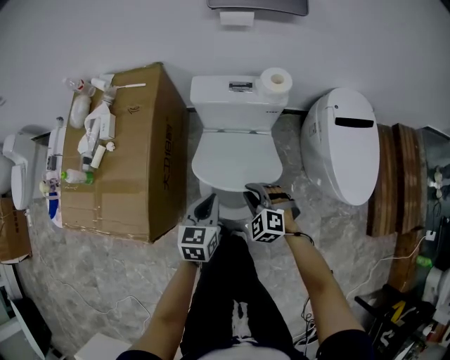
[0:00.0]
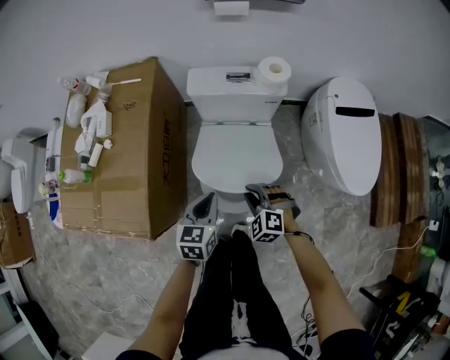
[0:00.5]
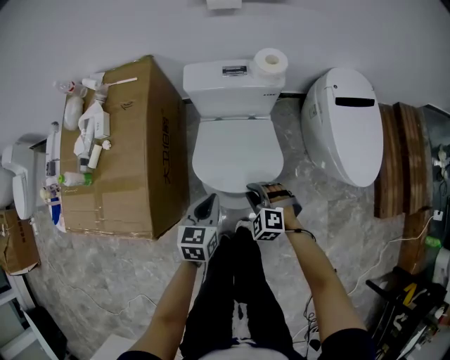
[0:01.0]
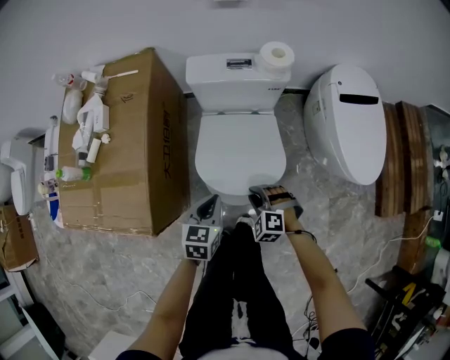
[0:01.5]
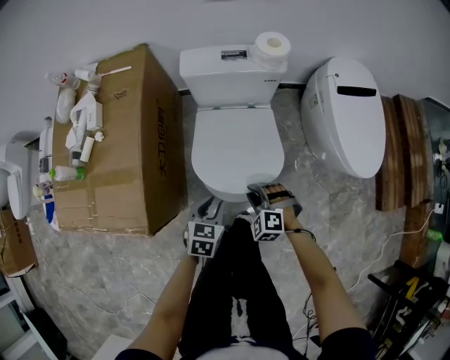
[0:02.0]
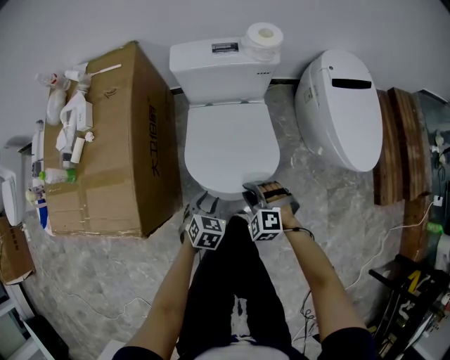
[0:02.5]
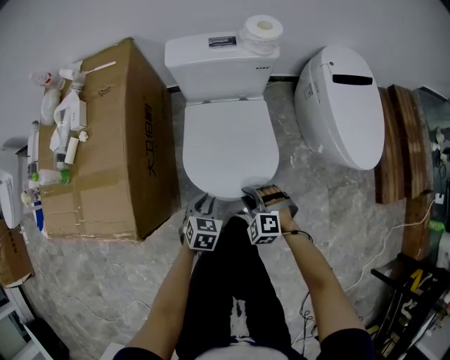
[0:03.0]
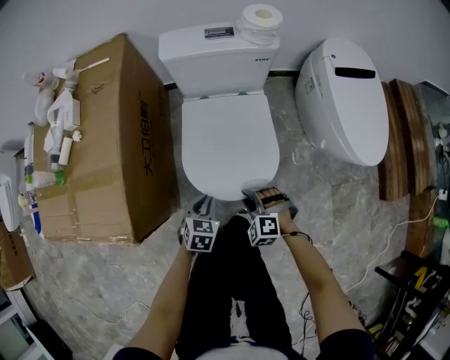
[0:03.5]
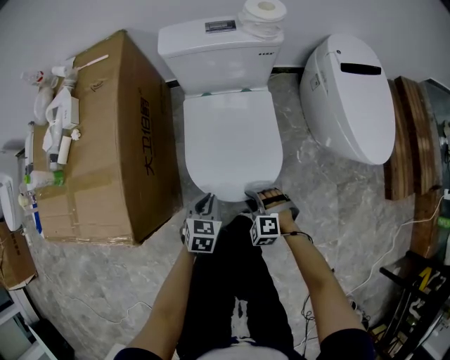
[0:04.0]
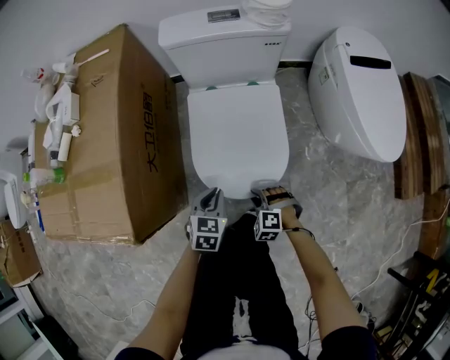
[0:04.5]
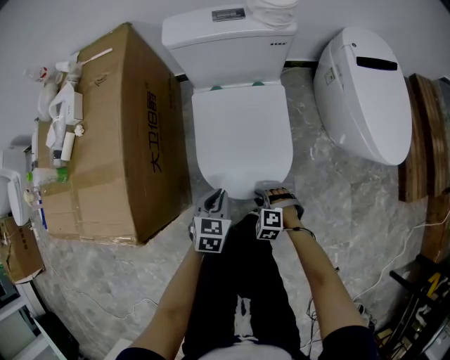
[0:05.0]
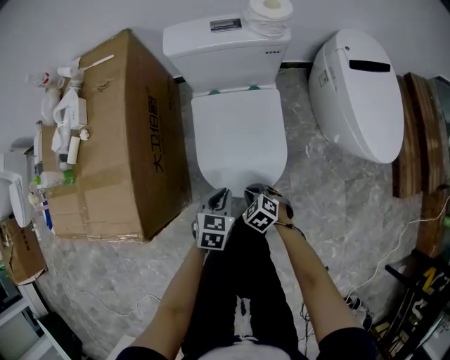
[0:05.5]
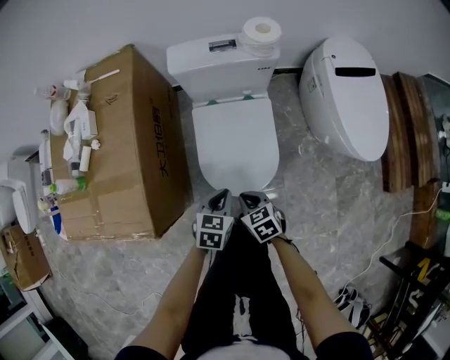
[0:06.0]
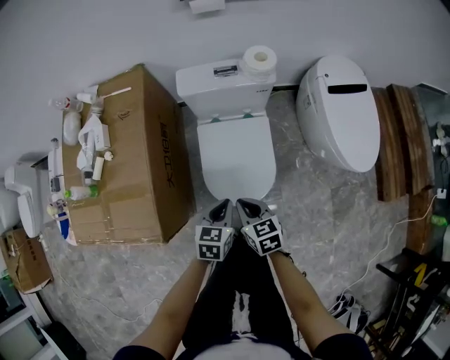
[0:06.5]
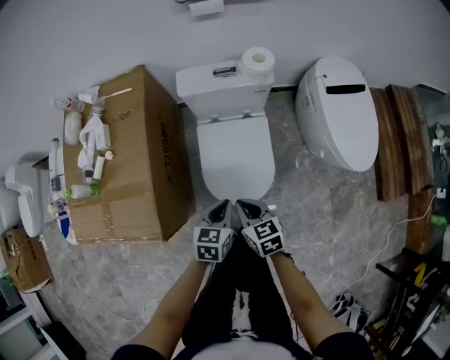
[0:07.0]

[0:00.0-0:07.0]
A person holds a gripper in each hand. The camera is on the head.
0:00.0 to 0:02.0: The grippers both shift downward and backward by approximately 15 cm. The left gripper rotates about 20 degrees, and opens its fingers.
0:02.0 to 0:03.5: The grippers both shift downward by approximately 10 cm.
0:03.5 to 0:05.0: The right gripper goes some 10 cm downward.
0:05.0 to 0:07.0: The right gripper heads upward, covering roughly 35 cm, rolls clockwise, seen from behind, by approximately 60 degrees, and closes its fingers, while the left gripper travels upward by roughly 25 cm.

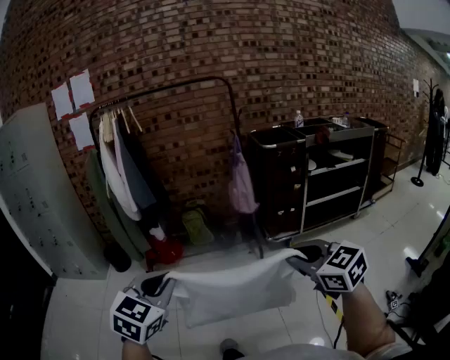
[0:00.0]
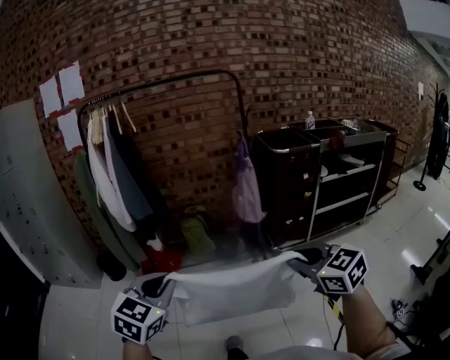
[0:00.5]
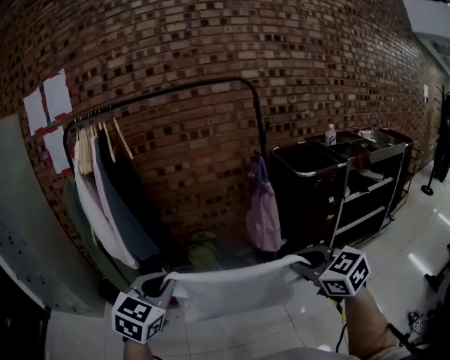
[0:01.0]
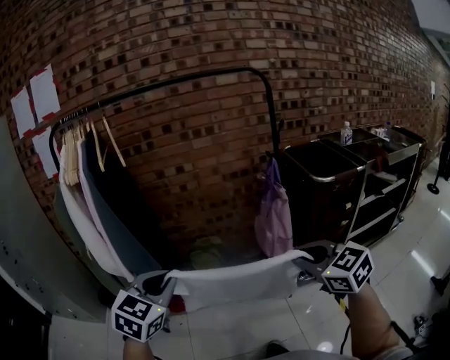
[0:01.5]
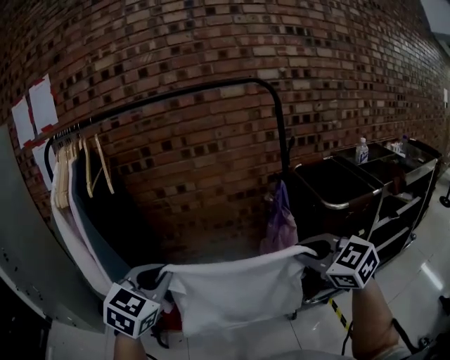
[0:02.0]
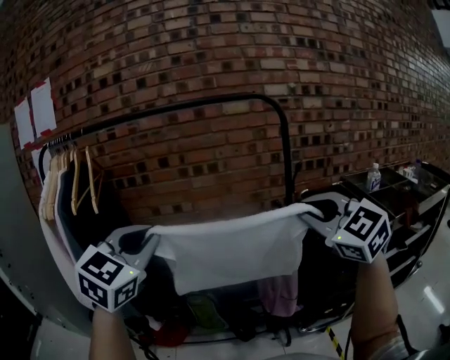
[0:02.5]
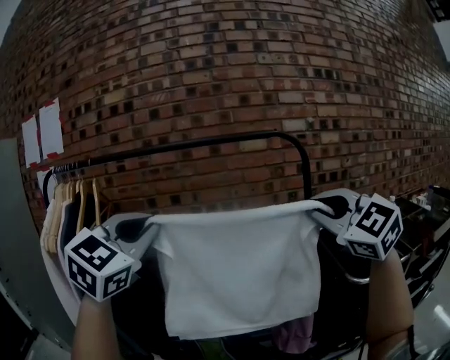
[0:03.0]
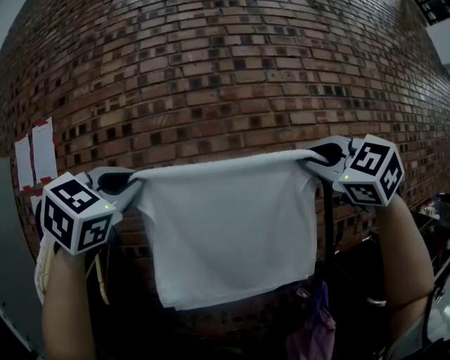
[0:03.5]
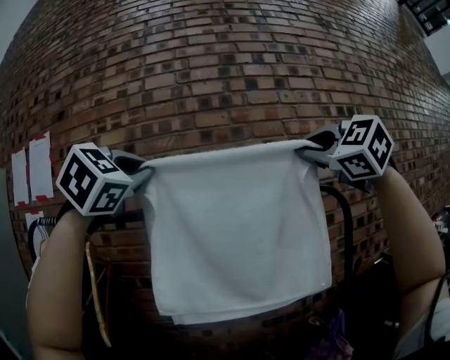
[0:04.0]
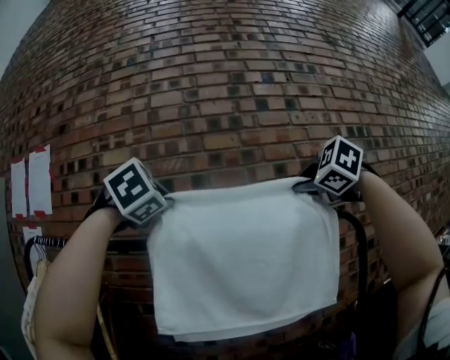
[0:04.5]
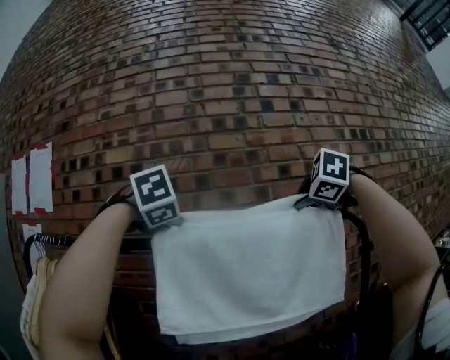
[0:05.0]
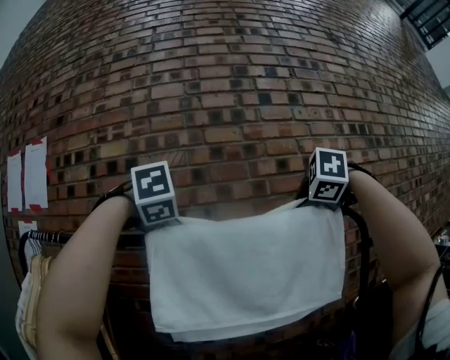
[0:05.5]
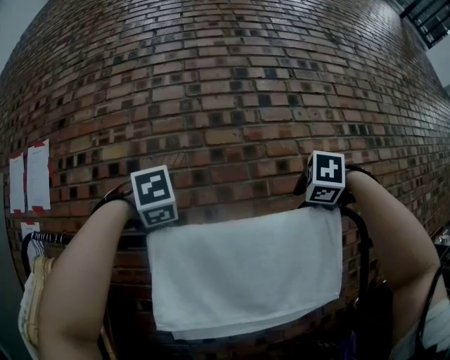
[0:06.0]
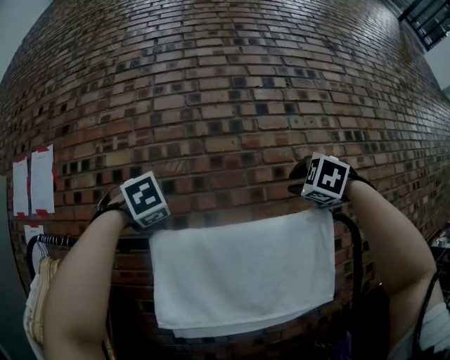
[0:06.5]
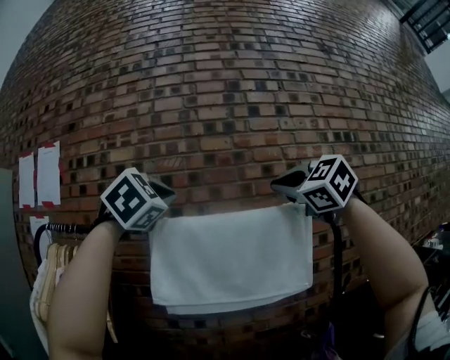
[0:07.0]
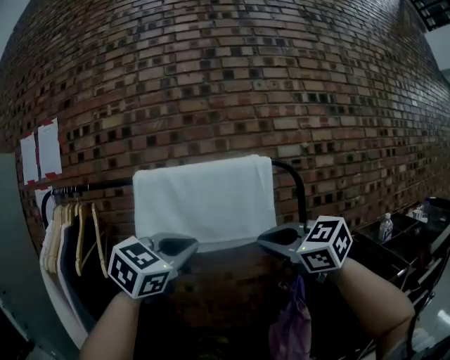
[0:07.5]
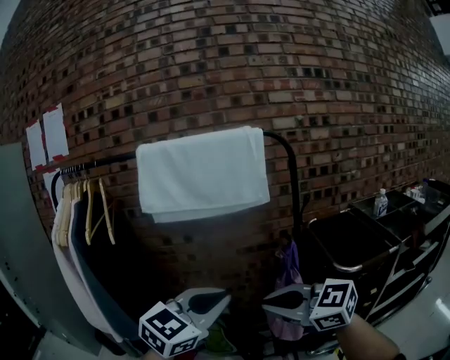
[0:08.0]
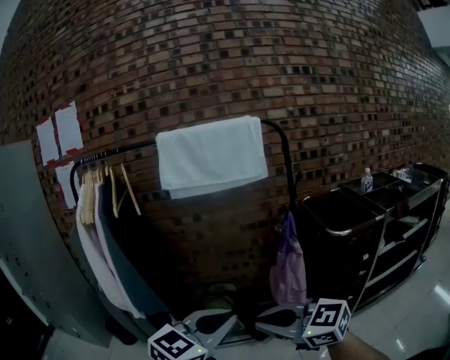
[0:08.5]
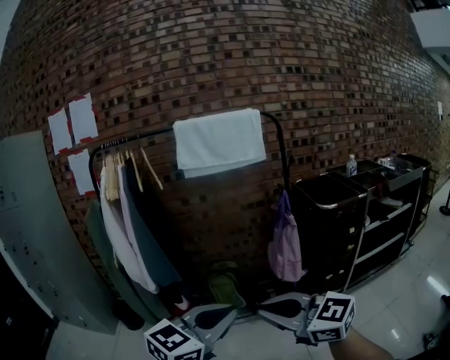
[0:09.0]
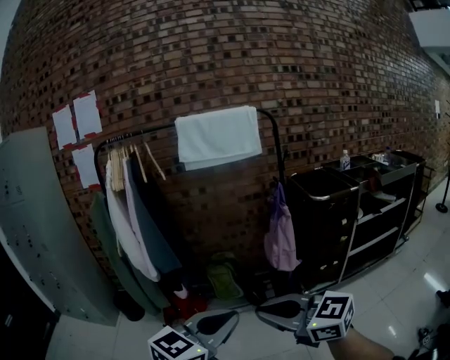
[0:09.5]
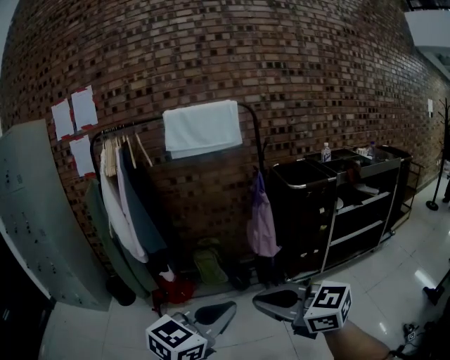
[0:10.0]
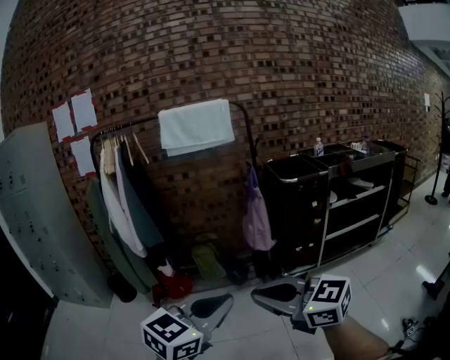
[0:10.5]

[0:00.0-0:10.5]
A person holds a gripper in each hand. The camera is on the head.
0:00.0 to 0:02.0: The two grippers travel together, forward, some 60 cm.
0:02.0 to 0:04.0: The grippers both shift upward and forward by some 60 cm. The right gripper rotates about 40 degrees, while the left gripper rotates about 40 degrees.
0:04.0 to 0:06.5: Both grippers travel together forward, roughly 15 cm. The left gripper rotates about 30 degrees, and opens its fingers. The right gripper changes its angle by roughly 30 degrees, and opens its fingers.
0:06.5 to 0:08.5: The two grippers travel together, backward, some 60 cm. The grippers both shift downward by about 40 cm. The left gripper turns by approximately 70 degrees, and closes its fingers. Meanwhile the right gripper swivels about 80 degrees, and closes its fingers.
0:08.5 to 0:10.5: The two grippers go approximately 40 cm backward.

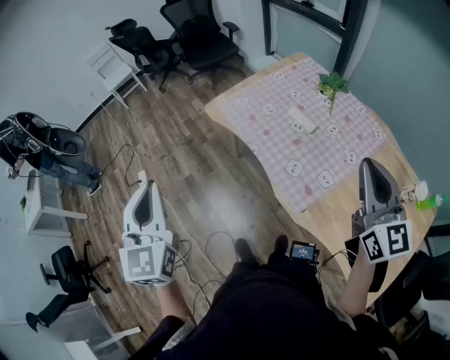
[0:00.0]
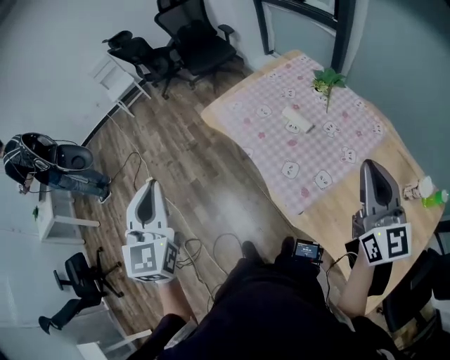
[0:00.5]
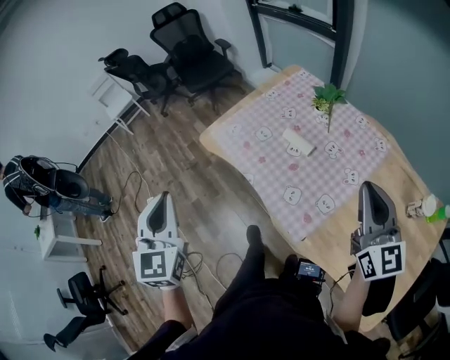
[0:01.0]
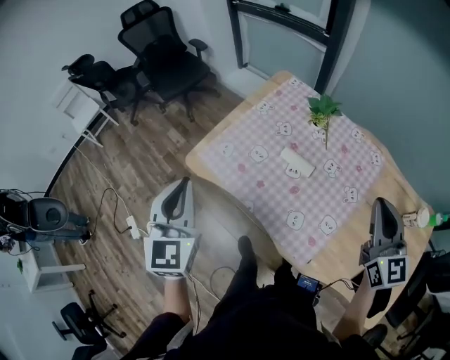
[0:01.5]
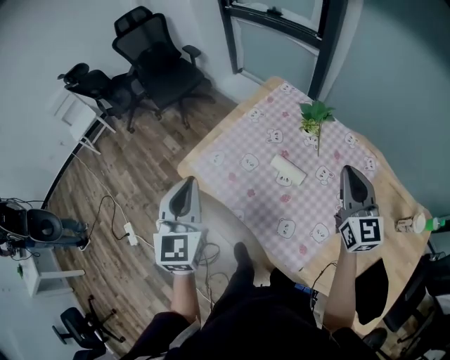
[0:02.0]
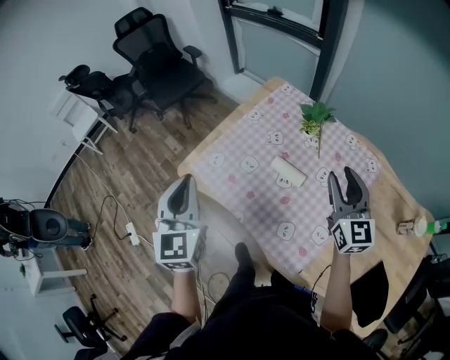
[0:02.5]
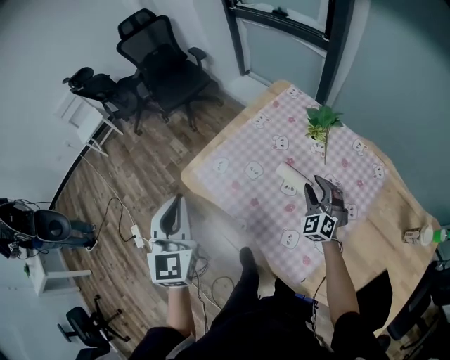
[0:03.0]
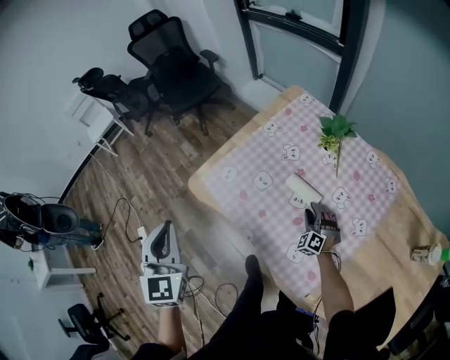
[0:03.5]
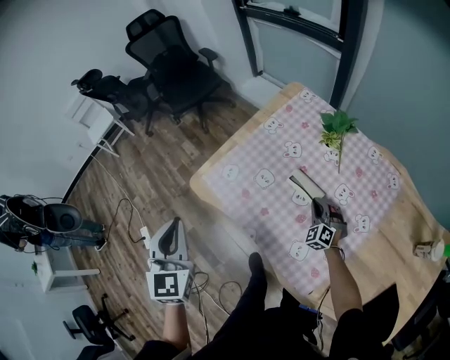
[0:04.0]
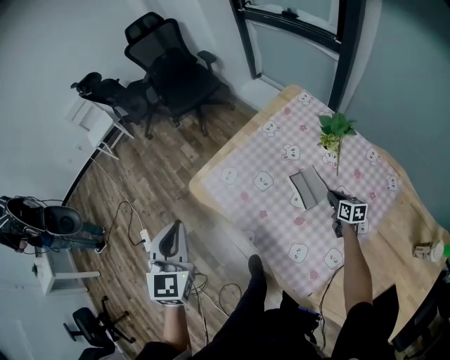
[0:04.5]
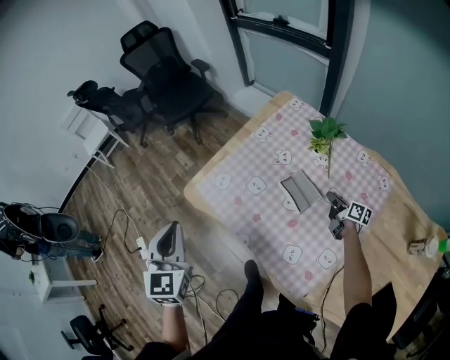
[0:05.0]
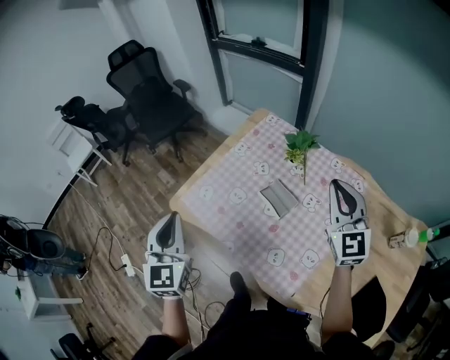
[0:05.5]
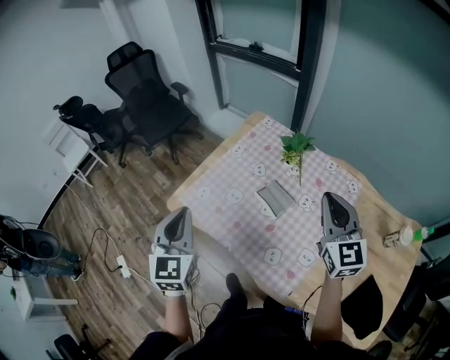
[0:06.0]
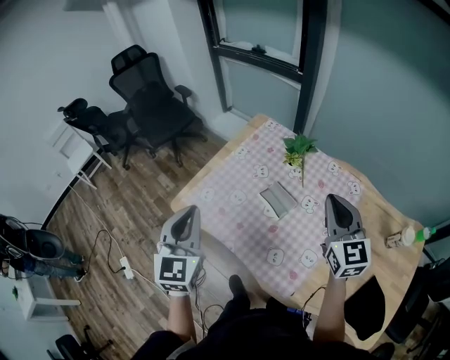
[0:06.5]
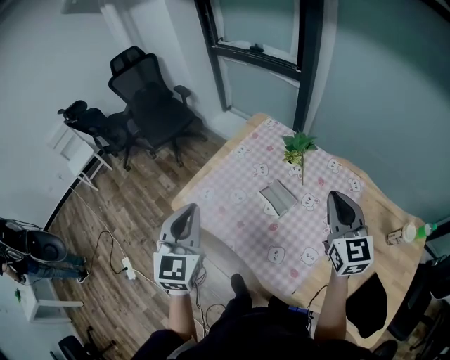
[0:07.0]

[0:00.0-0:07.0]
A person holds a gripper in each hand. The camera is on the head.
0:00.0 to 0:02.0: The two grippers go about 30 cm forward. The left gripper swivels roughly 20 degrees.
0:02.0 to 0:03.5: The right gripper moves downward, approximately 40 cm, rolls counterclockwise, seen from behind, by some 50 degrees, and opens, while the left gripper heads to the left, covering roughly 5 cm.
0:03.5 to 0:05.0: The right gripper goes approximately 15 cm to the right, twists about 110 degrees clockwise, seen from behind, and closes.
0:05.0 to 0:07.0: The right gripper heads upward, covering about 40 cm, and rolls counterclockwise, seen from behind, by approximately 60 degrees; the left gripper heads to the right and upward, covering roughly 10 cm.

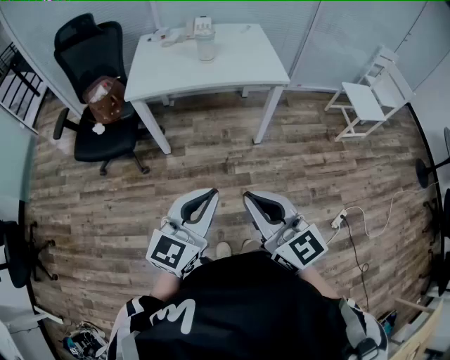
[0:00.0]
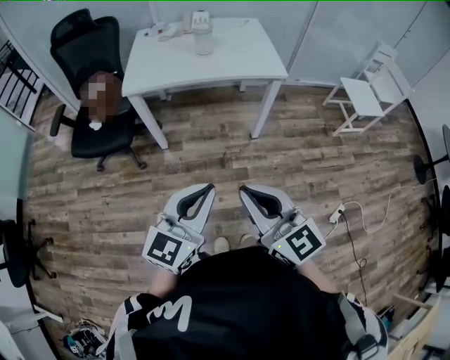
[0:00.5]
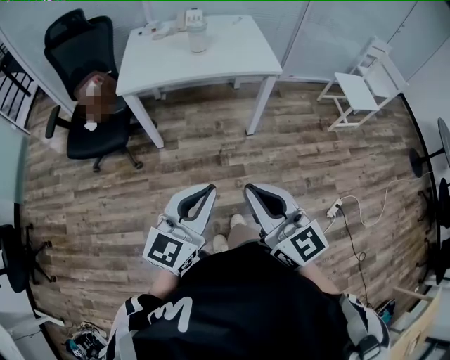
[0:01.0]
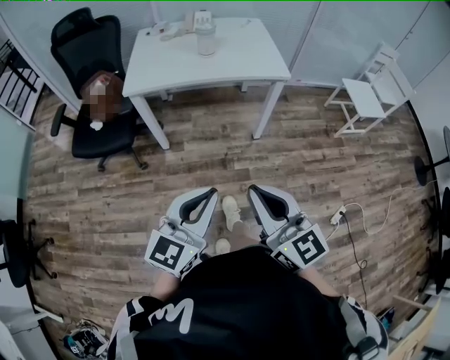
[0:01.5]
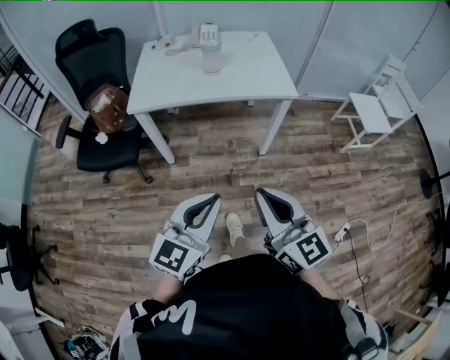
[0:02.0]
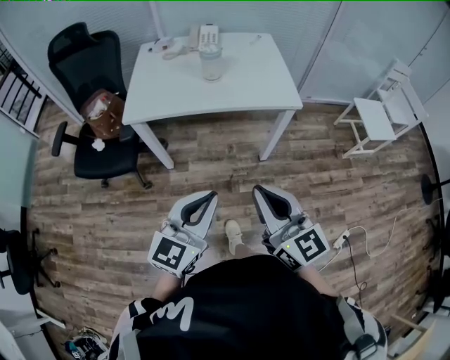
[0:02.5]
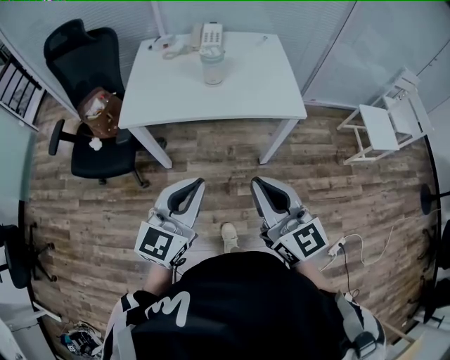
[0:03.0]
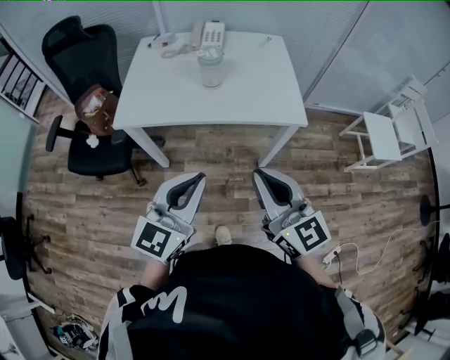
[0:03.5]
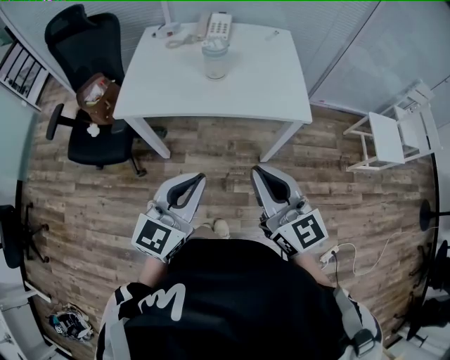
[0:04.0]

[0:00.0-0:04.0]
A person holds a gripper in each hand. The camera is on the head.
0:00.0 to 0:02.0: The grippers both shift forward by roughly 10 cm.
0:02.0 to 0:04.0: The grippers both shift forward by some 20 cm.
